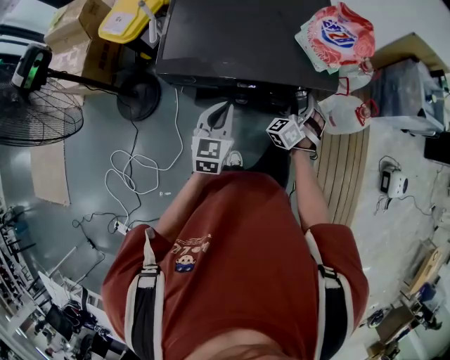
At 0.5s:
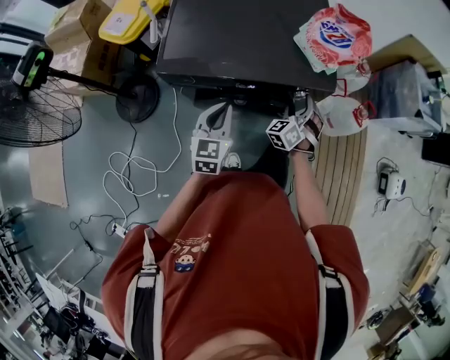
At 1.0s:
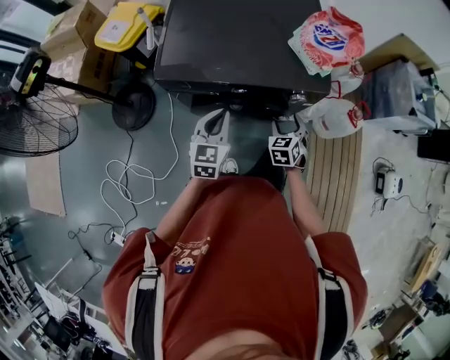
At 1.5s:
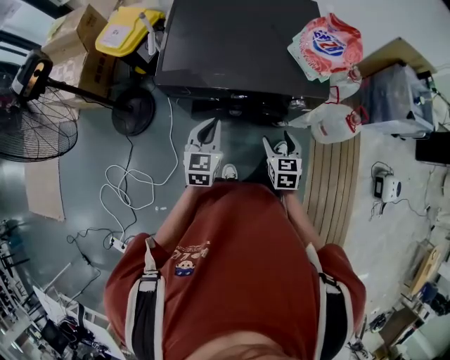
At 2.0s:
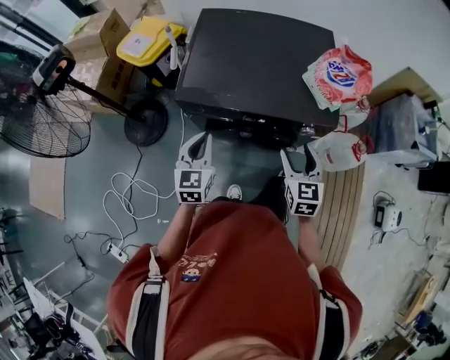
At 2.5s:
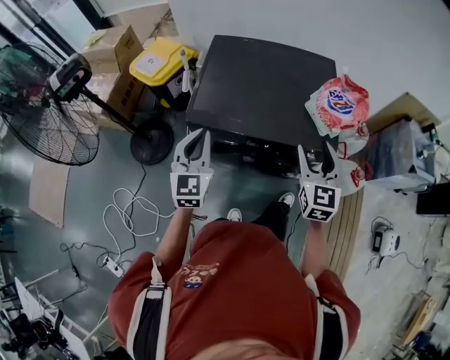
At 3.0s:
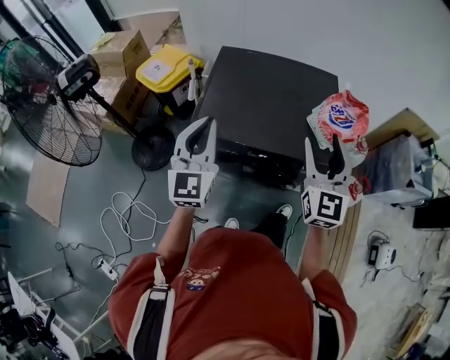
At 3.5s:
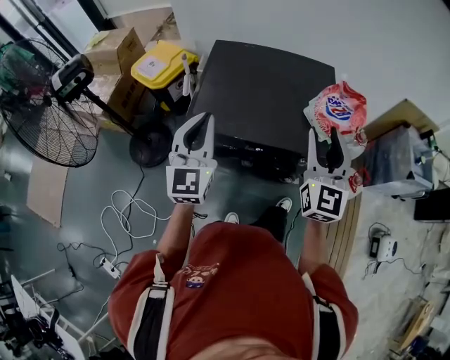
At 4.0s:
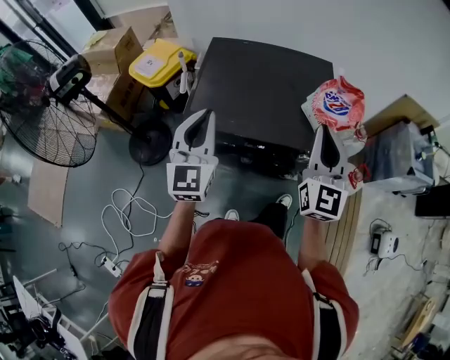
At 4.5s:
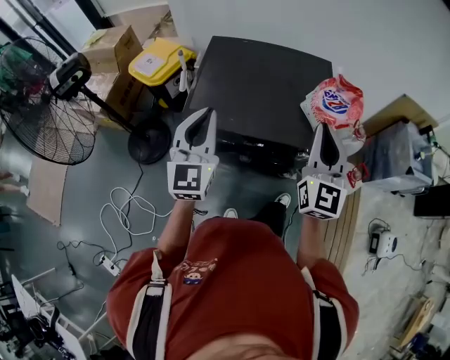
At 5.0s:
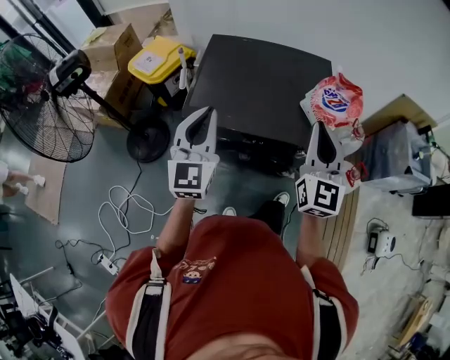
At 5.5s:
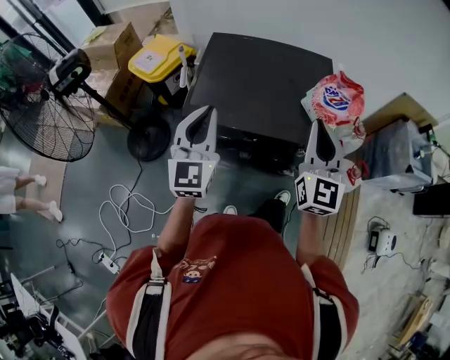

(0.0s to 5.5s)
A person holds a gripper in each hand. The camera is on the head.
0.0s - 2.0s: The left gripper goes roughly 10 cm to the left. The right gripper shifts some 20 cm upward, backward and to the left, and rotates roughly 50 degrees.
2.0s - 3.5s: Both grippers move upward, roughly 20 cm. The right gripper points its fingers roughly 30 degrees further upward. The left gripper swivels roughly 30 degrees.
3.5s - 5.5s: The right gripper closes its fingers.

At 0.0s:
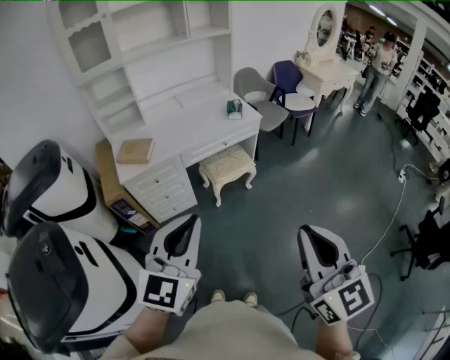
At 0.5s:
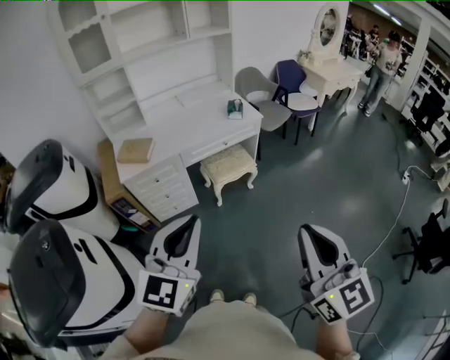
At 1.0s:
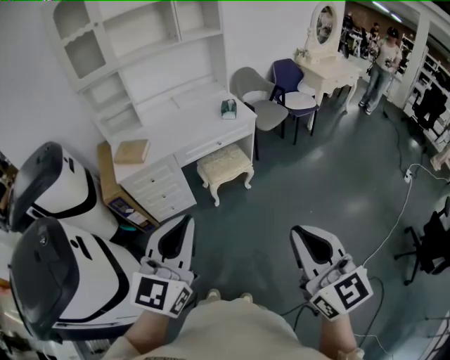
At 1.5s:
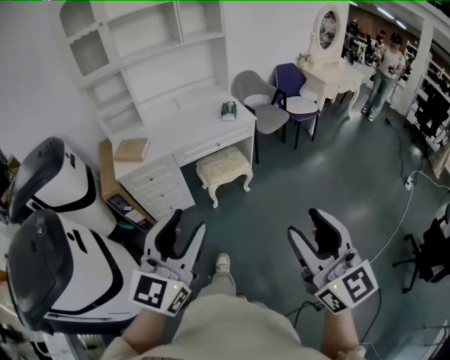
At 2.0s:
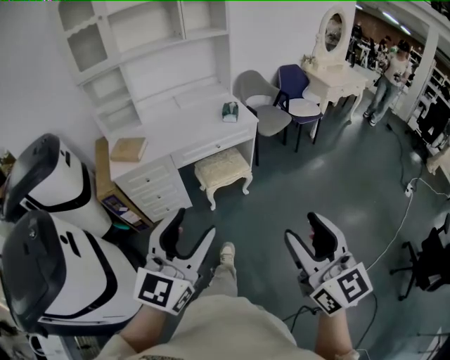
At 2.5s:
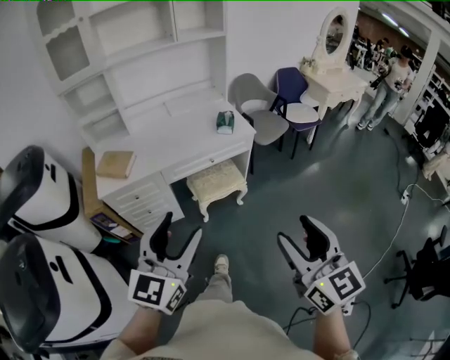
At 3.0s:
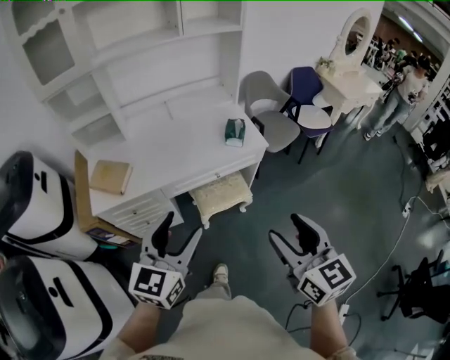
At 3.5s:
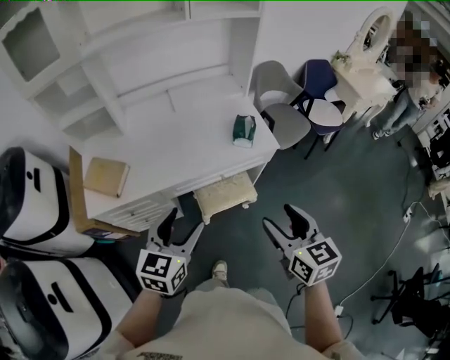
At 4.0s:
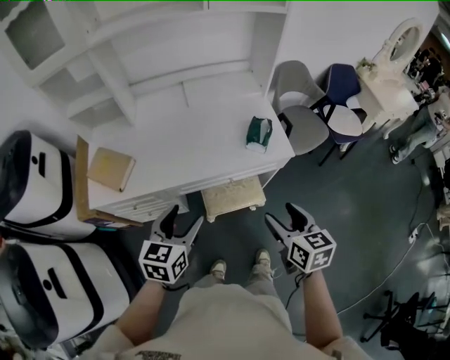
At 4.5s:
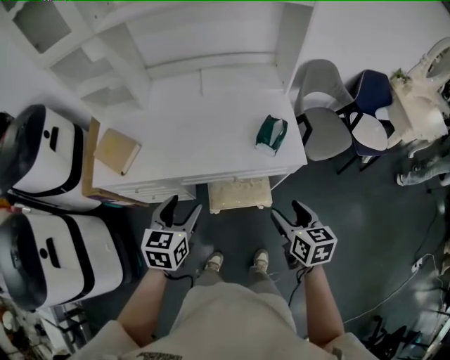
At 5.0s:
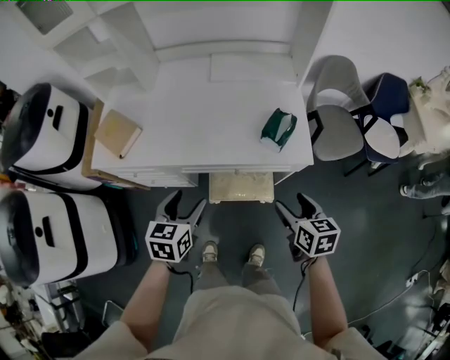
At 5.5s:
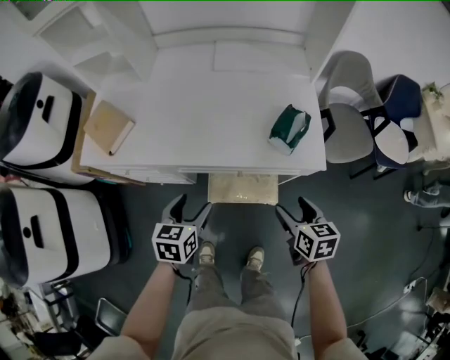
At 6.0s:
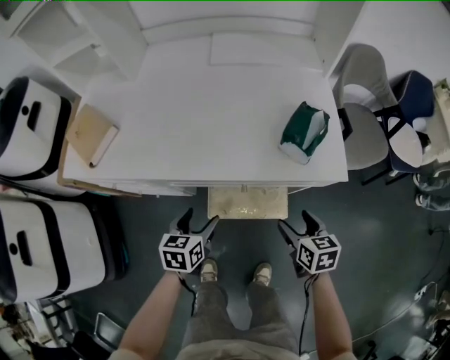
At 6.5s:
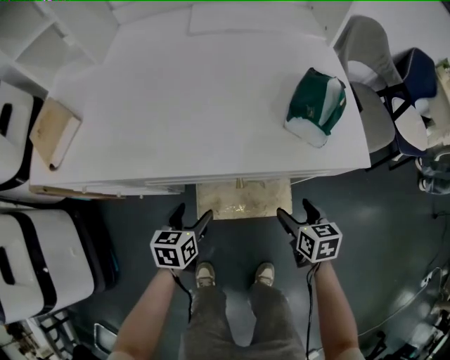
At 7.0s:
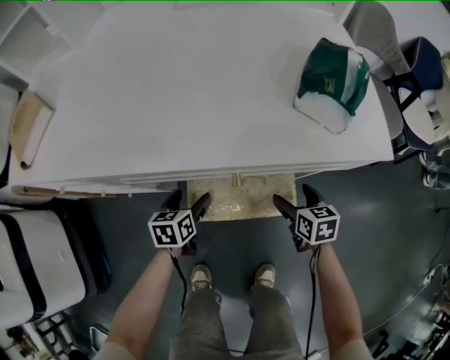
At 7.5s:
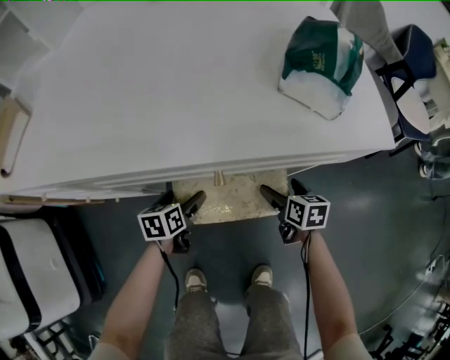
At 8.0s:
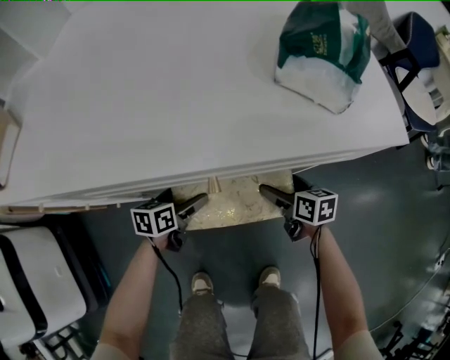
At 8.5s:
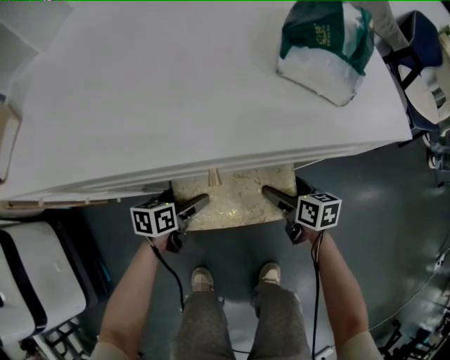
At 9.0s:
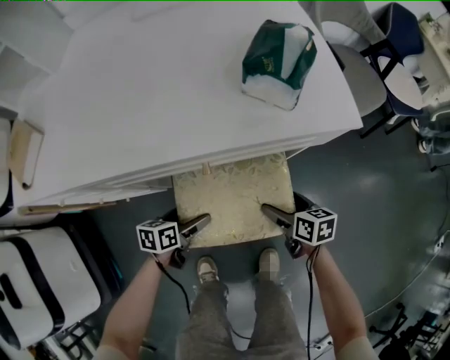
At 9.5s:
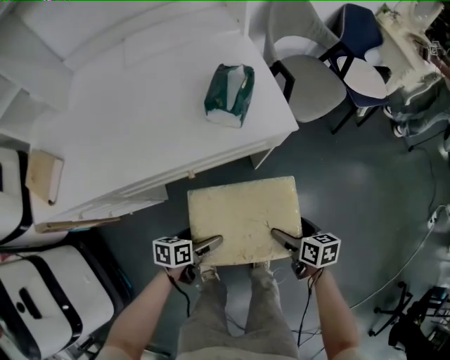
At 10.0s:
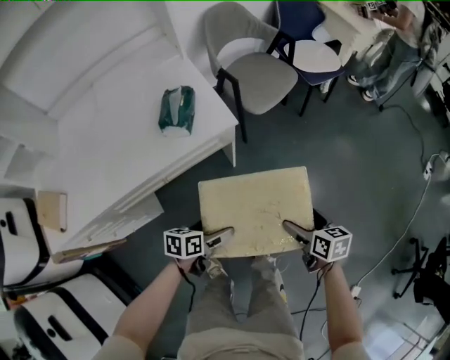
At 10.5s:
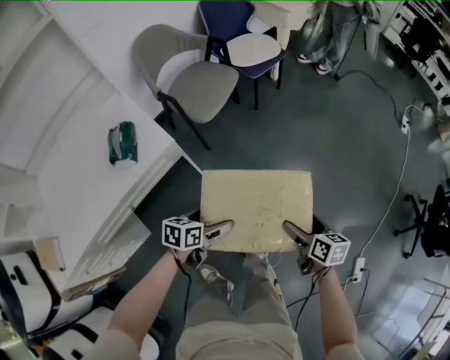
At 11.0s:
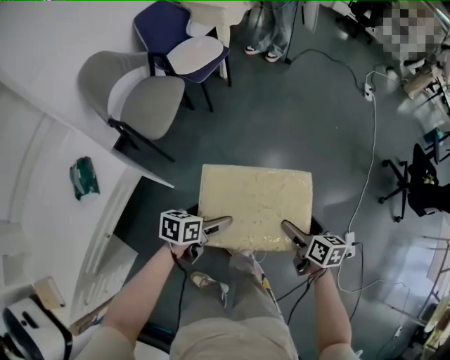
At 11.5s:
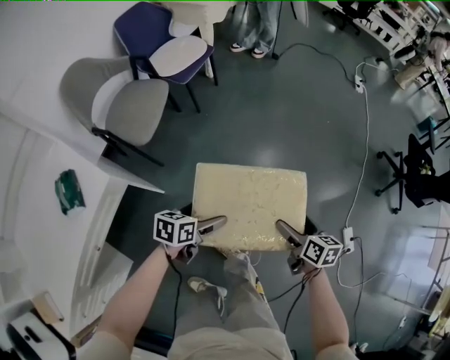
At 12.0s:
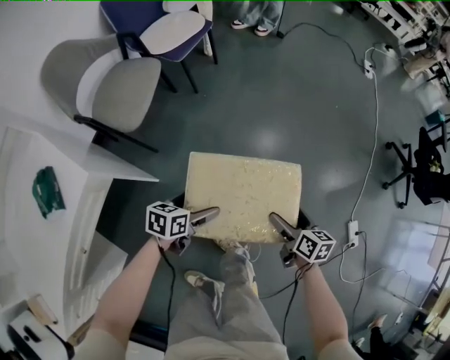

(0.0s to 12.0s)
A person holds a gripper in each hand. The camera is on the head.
0.0s - 2.0s: Both grippers move to the right, some 10 cm. The right gripper opens up, while the left gripper opens up.
2.0s - 4.0s: The two grippers travel together, forward, some 50 cm. The right gripper tips its fingers downward by about 30 degrees. Meanwhile the left gripper travels downward by some 20 cm, and swivels roughly 40 degrees.
4.0s - 6.0s: The grippers both shift downward by about 30 cm. The left gripper rotates roughly 30 degrees.
6.0s - 8.0s: The two grippers go about 30 cm downward.
8.0s - 10.0s: The left gripper goes approximately 30 cm upward, and swivels some 30 degrees, while the right gripper changes place by approximately 50 cm, and changes its angle by approximately 30 degrees.
10.0s - 12.0s: The left gripper goes upward and returns, roughly 10 cm each way, and changes its angle by approximately 40 degrees; the right gripper changes place by about 30 cm, and rotates about 50 degrees.

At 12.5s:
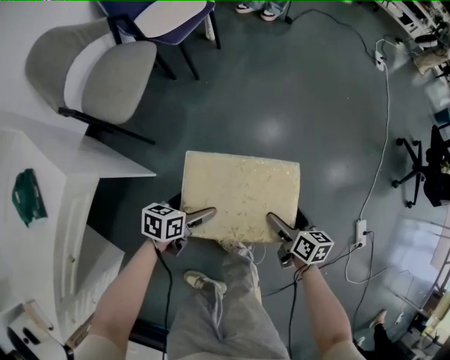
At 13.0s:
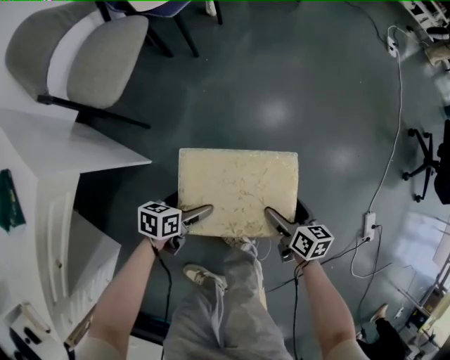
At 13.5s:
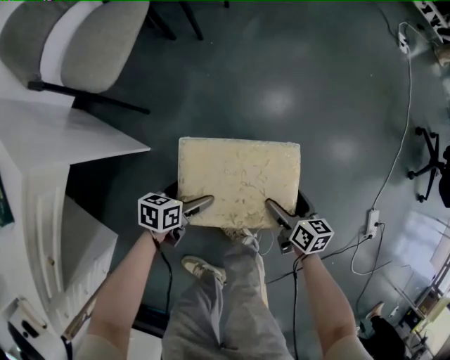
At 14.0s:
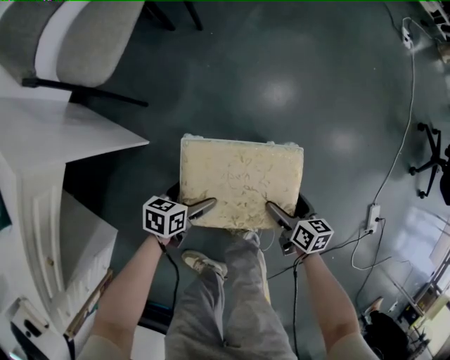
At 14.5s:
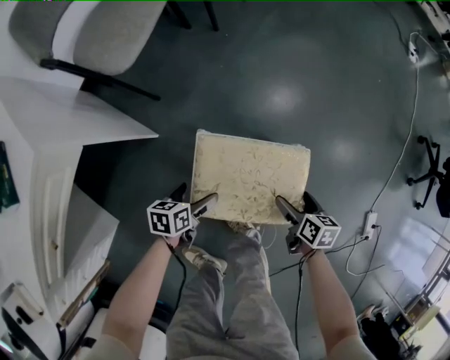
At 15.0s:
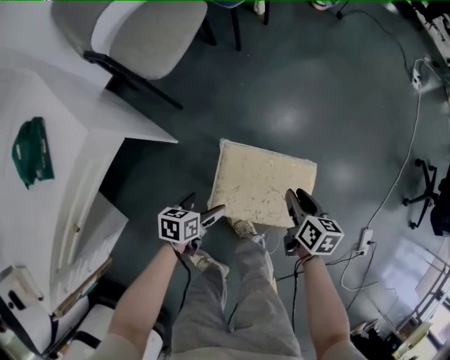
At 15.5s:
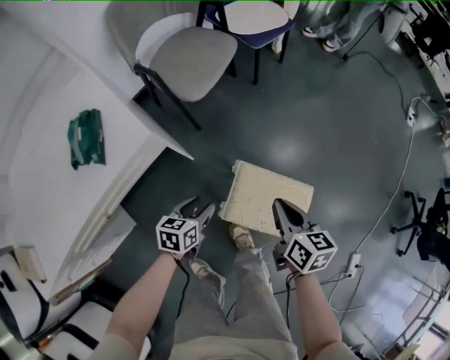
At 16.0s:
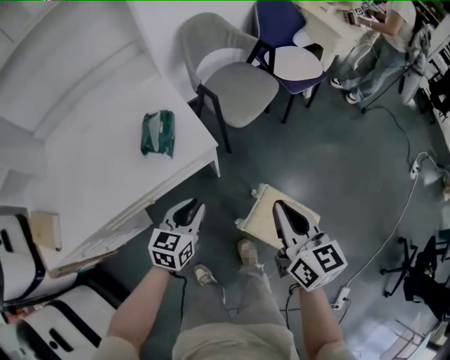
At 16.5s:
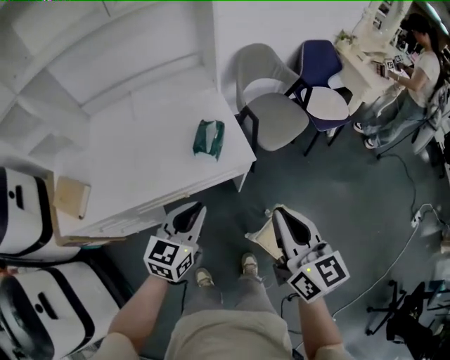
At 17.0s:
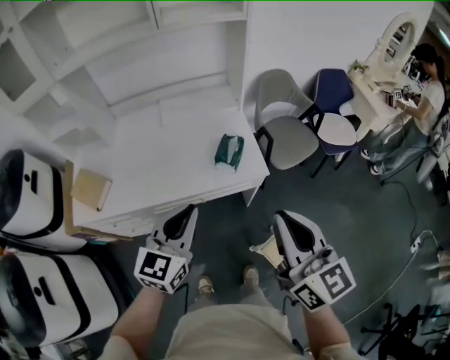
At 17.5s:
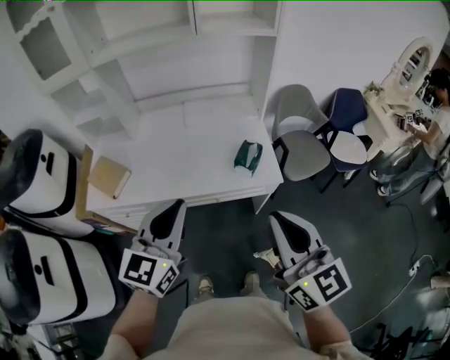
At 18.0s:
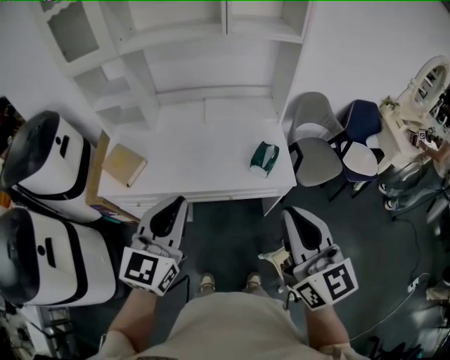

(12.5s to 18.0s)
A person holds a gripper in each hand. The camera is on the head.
12.5s - 14.5s: Both grippers move downward, roughly 15 cm.
14.5s - 16.0s: The grippers both shift upward by some 50 cm. The left gripper changes its angle by about 40 degrees, and closes up. Meanwhile the right gripper points its fingers roughly 30 degrees further upward, and closes up.
16.0s - 18.0s: The grippers both shift upward by some 35 cm. The left gripper changes its angle by some 40 degrees. Meanwhile the right gripper turns by roughly 40 degrees.

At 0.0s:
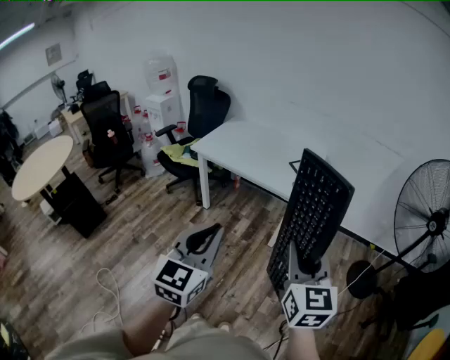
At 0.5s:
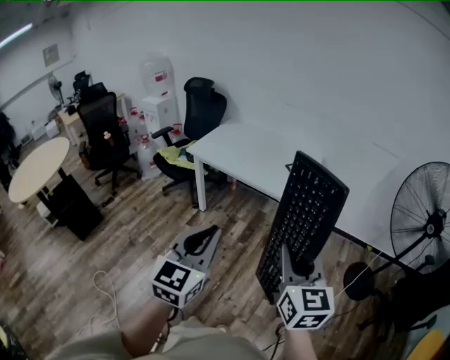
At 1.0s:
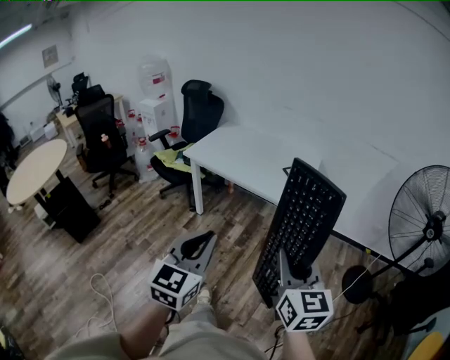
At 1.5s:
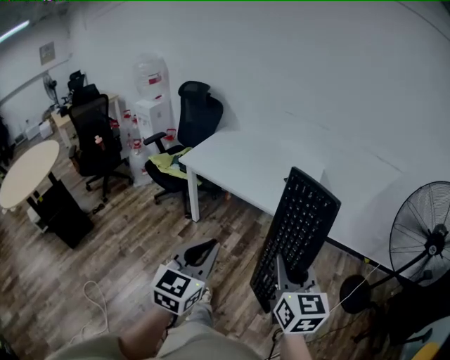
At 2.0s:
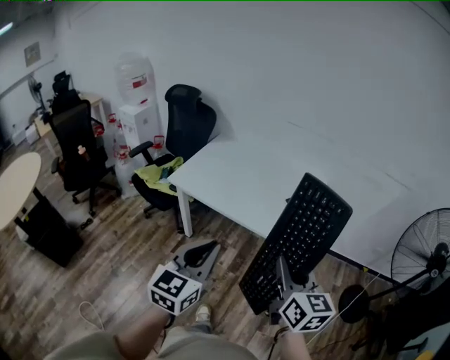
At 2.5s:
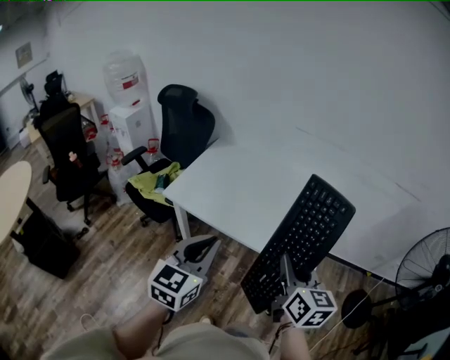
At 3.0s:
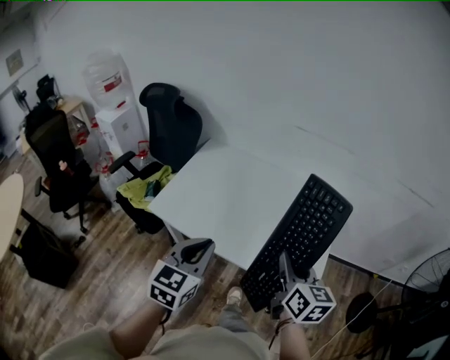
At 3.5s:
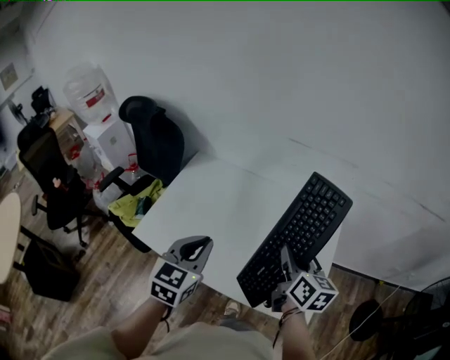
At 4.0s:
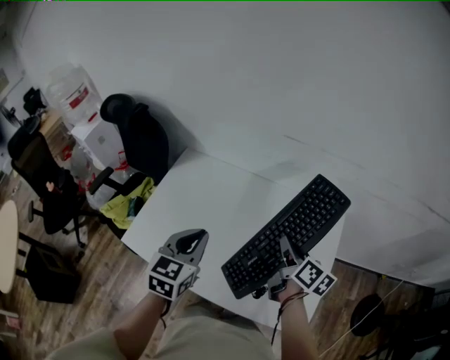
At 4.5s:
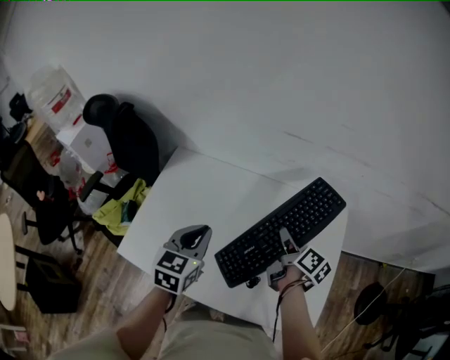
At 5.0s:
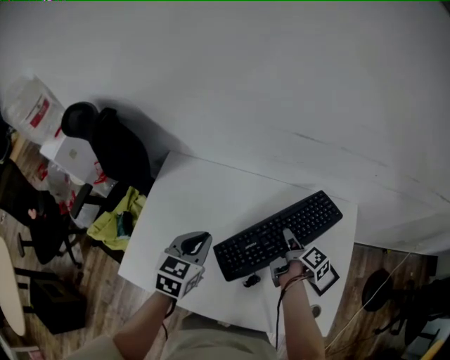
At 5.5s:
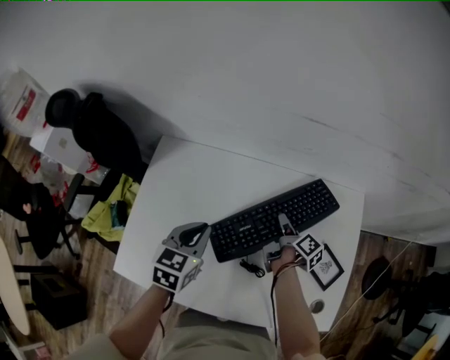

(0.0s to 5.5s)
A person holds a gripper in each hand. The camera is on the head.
0.0s - 2.0s: Both grippers travel together forward, roughly 25 cm.
2.0s - 3.5s: The two grippers travel together, forward, roughly 40 cm. The right gripper swivels approximately 20 degrees.
3.5s - 5.5s: The left gripper travels forward and downward by about 25 cm; the right gripper moves downward and forward, some 35 cm, and rotates around the line of its fingers by some 60 degrees, clockwise from behind.
